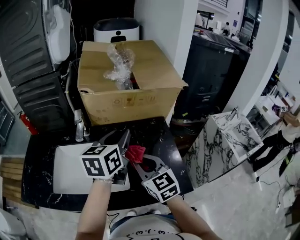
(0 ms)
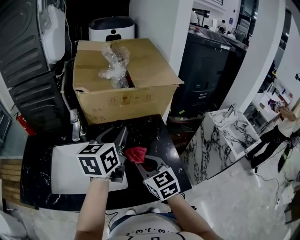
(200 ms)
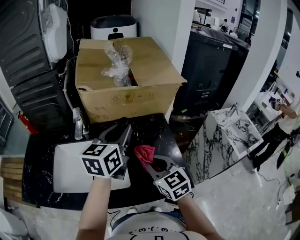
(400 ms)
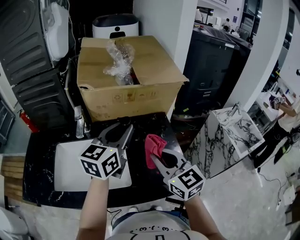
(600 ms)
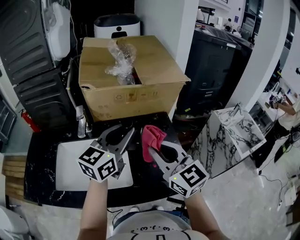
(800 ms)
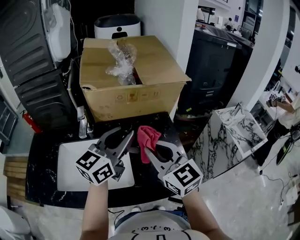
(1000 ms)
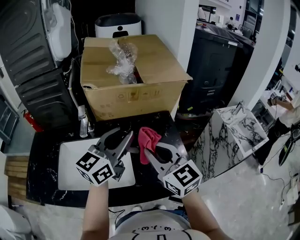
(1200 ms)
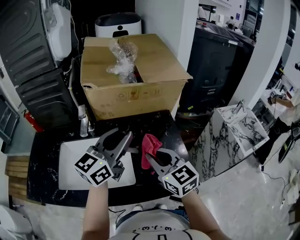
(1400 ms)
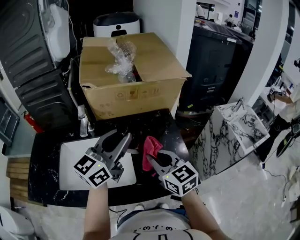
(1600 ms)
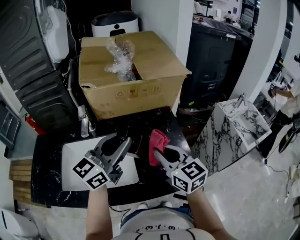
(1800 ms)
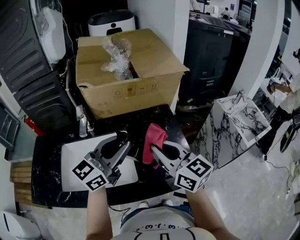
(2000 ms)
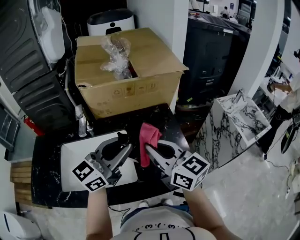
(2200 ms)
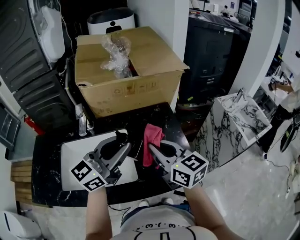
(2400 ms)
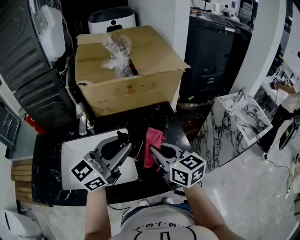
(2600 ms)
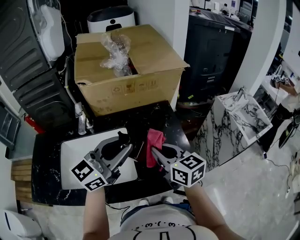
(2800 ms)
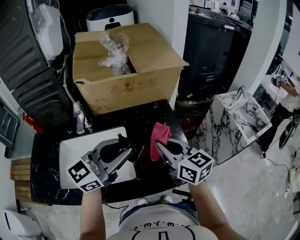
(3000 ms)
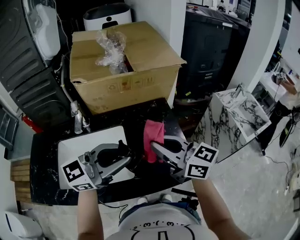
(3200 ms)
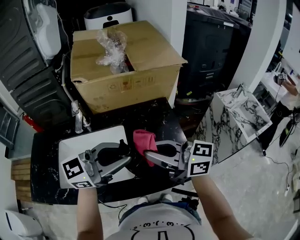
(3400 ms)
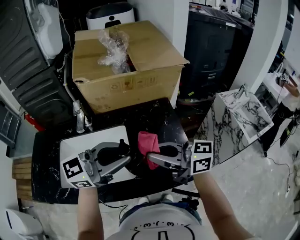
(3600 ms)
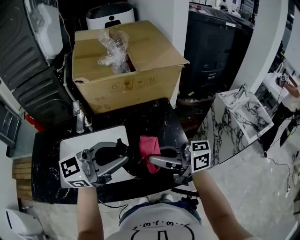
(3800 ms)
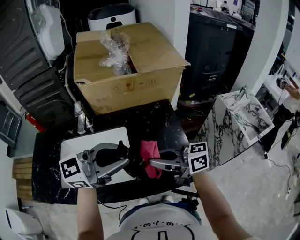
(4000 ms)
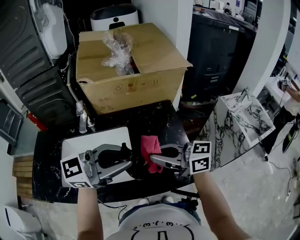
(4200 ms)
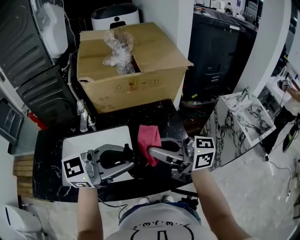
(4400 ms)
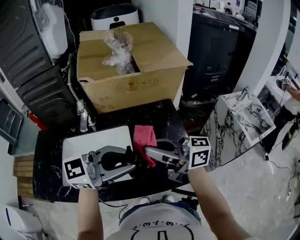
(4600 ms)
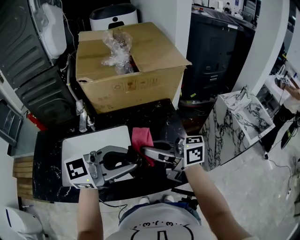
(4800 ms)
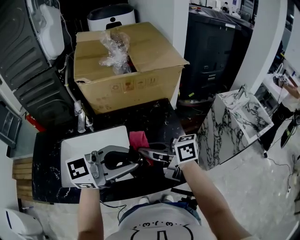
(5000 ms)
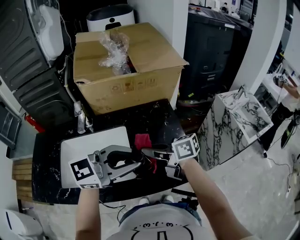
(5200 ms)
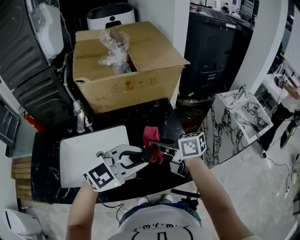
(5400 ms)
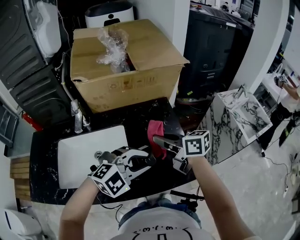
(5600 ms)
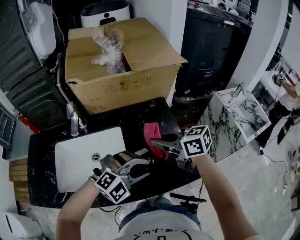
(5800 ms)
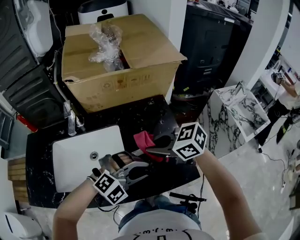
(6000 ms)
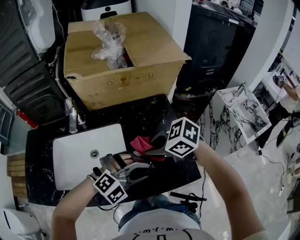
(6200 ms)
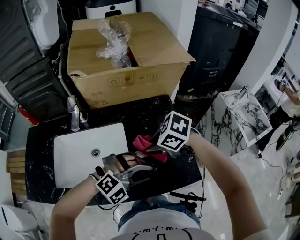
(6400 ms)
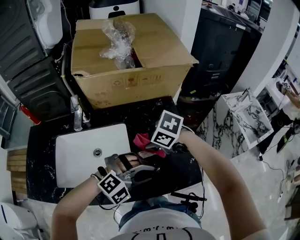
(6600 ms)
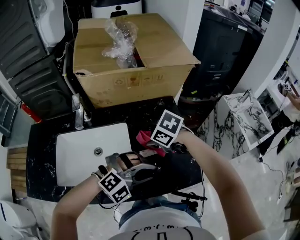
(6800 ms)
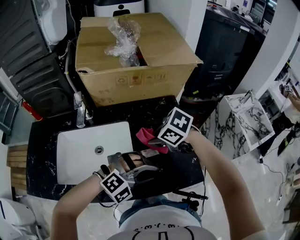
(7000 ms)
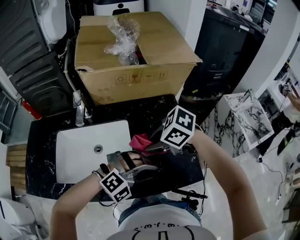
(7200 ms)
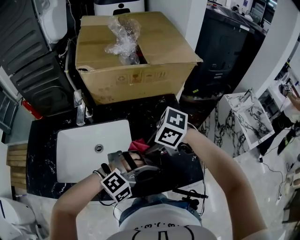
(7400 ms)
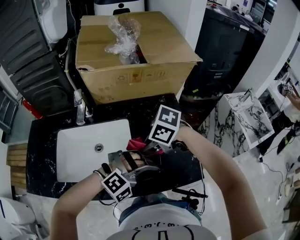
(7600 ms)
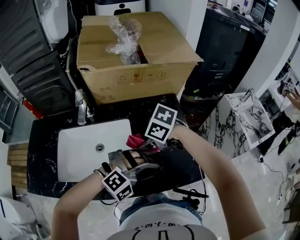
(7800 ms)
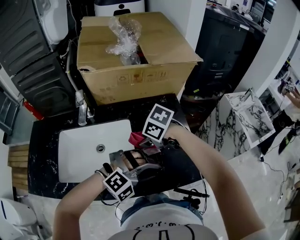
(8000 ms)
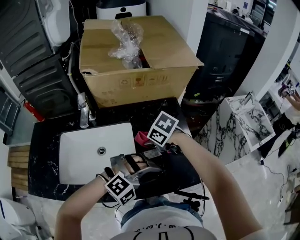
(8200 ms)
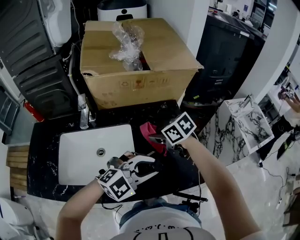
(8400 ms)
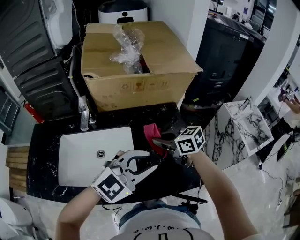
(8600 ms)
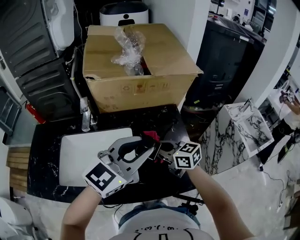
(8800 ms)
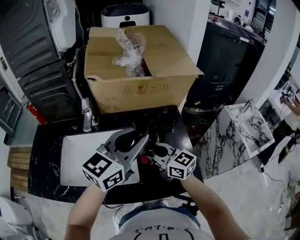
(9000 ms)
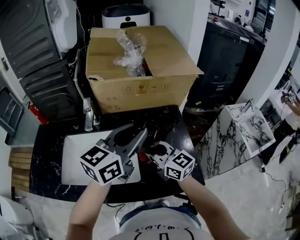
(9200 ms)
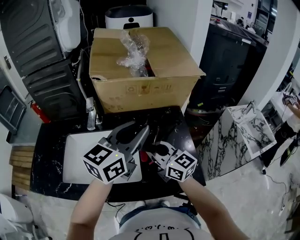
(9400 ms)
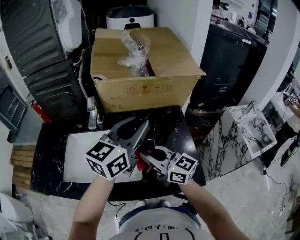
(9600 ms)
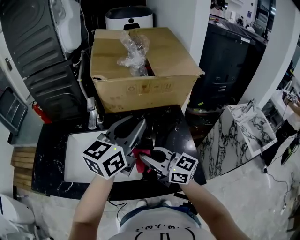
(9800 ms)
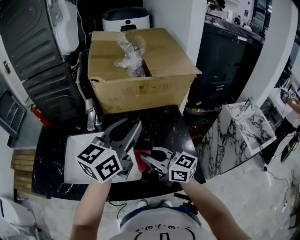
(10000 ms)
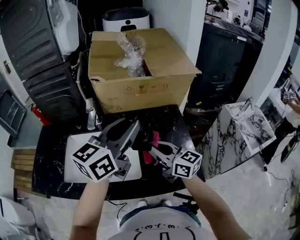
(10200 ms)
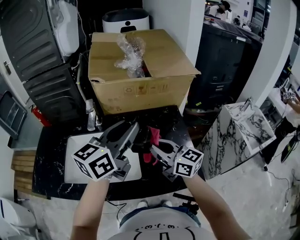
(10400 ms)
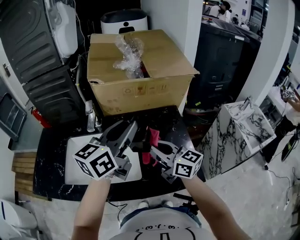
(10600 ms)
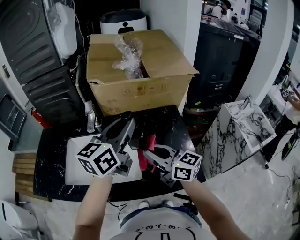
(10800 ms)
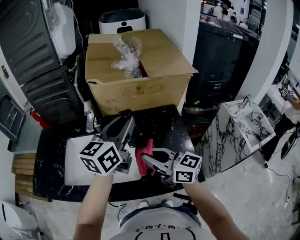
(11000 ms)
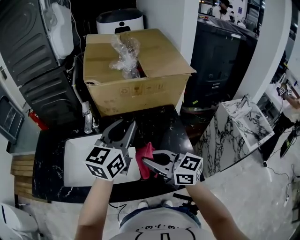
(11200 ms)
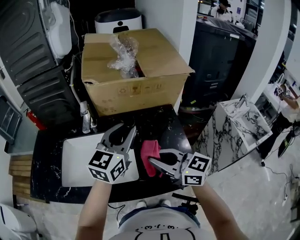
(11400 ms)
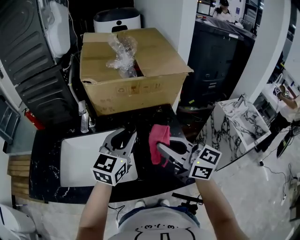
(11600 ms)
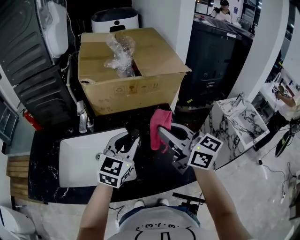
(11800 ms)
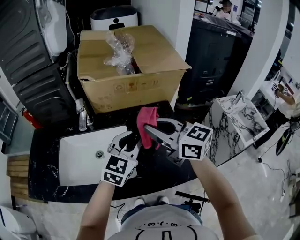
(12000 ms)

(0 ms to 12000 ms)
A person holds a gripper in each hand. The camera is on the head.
0 ms - 1600 ms: The left gripper shifts by roughly 5 cm, and rotates approximately 30 degrees. Meanwhile the right gripper moves roughly 10 cm upward and comes back.
1600 ms - 3000 ms: The left gripper changes place by roughly 5 cm.
3000 ms - 4400 ms: The right gripper moves up and down over approximately 5 cm, changing direction 2 times, and swivels about 50 degrees.
4400 ms - 6000 ms: Both grippers move downward, approximately 15 cm. The left gripper twists roughly 50 degrees clockwise, seen from behind, while the right gripper tips its fingers downward by about 40 degrees.
6000 ms - 7600 ms: The right gripper shifts by some 10 cm, and turns by about 30 degrees.
7600 ms - 9000 ms: The left gripper heads upward, covering roughly 20 cm, and rotates around the line of its fingers by some 70 degrees, counterclockwise from behind. The right gripper tilts its fingers approximately 50 degrees upward.
9000 ms - 10400 ms: The right gripper ends up some 5 cm from where it was.
10400 ms - 12000 ms: The left gripper is displaced downward by some 10 cm, and turns by approximately 30 degrees. Meanwhile the right gripper travels upward by roughly 10 cm.

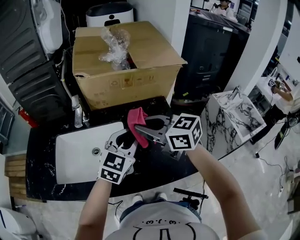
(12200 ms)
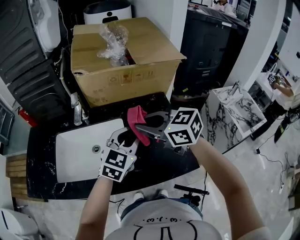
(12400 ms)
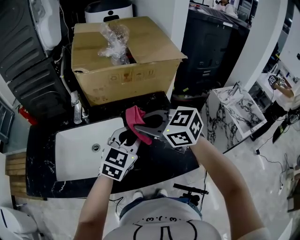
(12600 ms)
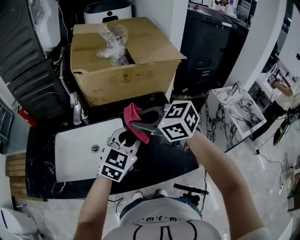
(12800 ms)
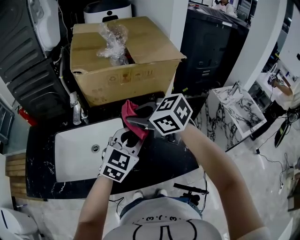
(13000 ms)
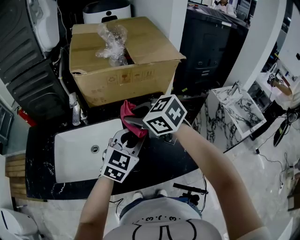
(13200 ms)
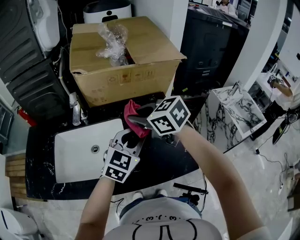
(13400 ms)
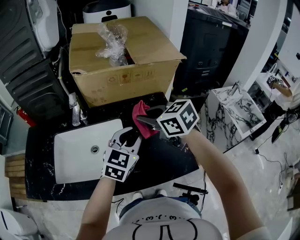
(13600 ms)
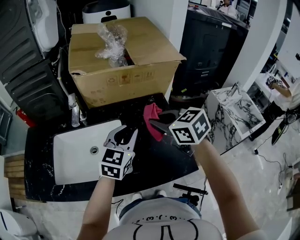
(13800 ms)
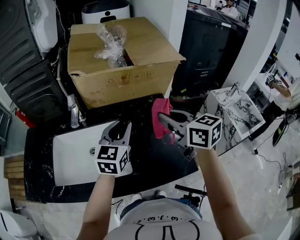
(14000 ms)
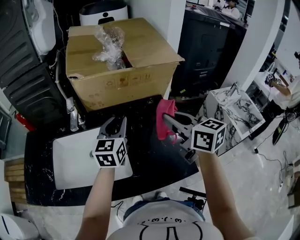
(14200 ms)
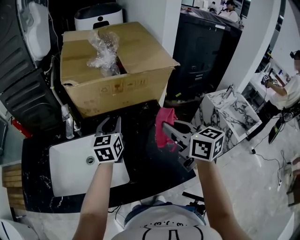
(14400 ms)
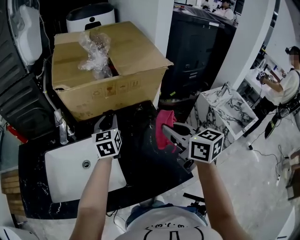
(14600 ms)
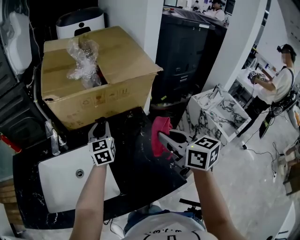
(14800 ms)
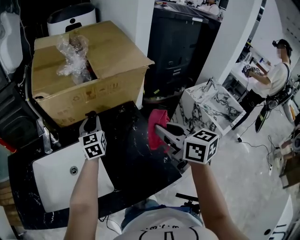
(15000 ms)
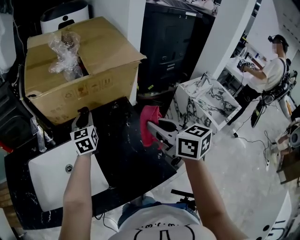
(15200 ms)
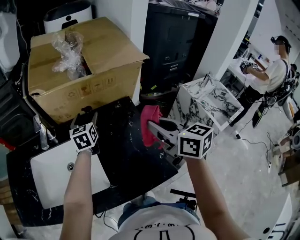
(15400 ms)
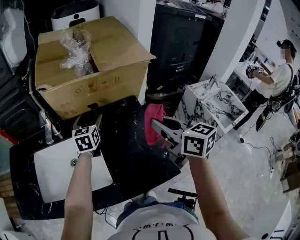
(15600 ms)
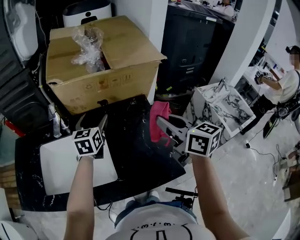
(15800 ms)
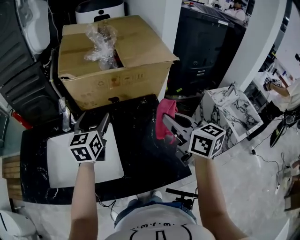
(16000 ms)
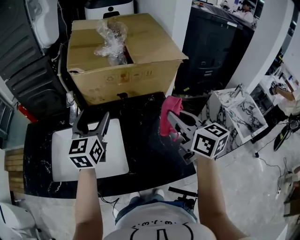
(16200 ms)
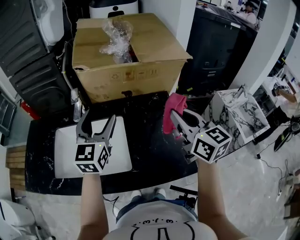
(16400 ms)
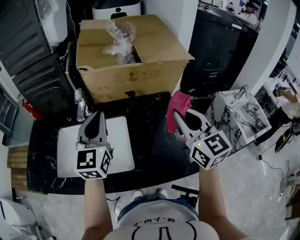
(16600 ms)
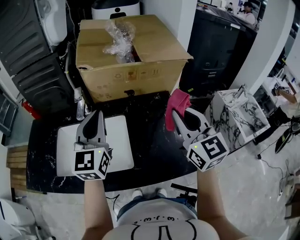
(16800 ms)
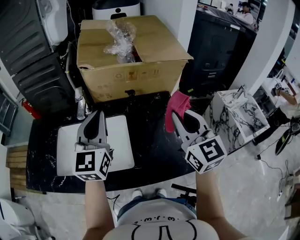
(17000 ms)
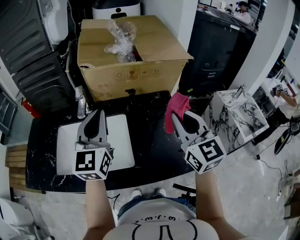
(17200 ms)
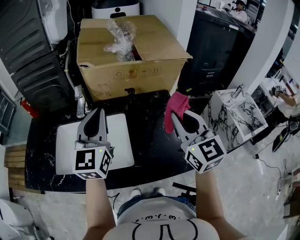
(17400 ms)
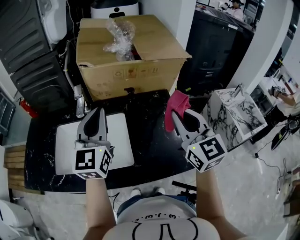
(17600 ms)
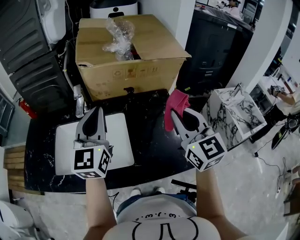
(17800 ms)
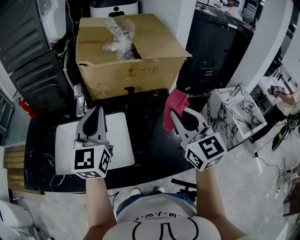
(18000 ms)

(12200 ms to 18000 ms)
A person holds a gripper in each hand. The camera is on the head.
12200 ms - 13600 ms: The right gripper shifts by some 5 cm.
13600 ms - 15000 ms: The left gripper travels forward by some 20 cm, and turns by approximately 30 degrees, while the right gripper shifts roughly 15 cm to the right, and rotates about 40 degrees.
15000 ms - 16600 ms: The right gripper travels to the left by about 5 cm, and turns by some 30 degrees. The left gripper moves backward, upward and to the left, about 25 cm, and opens, then closes again.
16600 ms - 18000 ms: The grippers stay close to where they were, moving slightly.

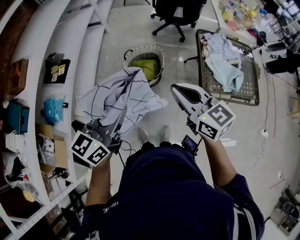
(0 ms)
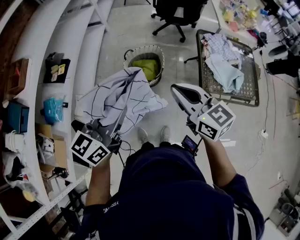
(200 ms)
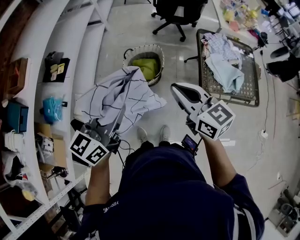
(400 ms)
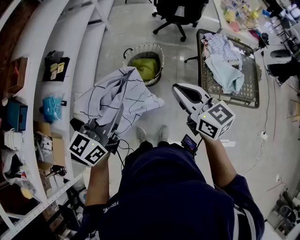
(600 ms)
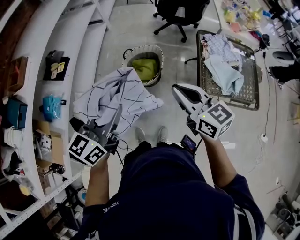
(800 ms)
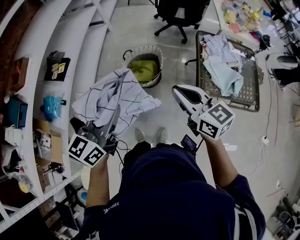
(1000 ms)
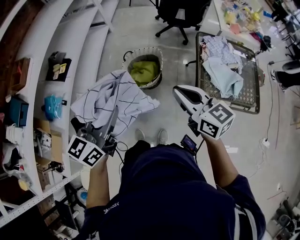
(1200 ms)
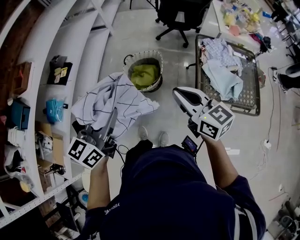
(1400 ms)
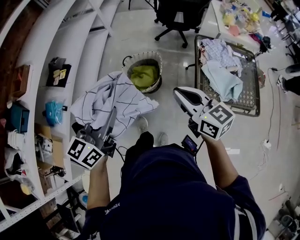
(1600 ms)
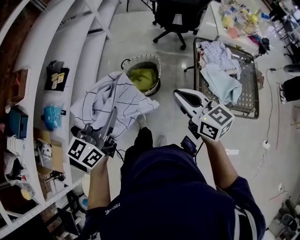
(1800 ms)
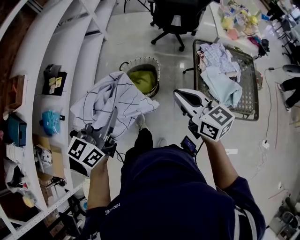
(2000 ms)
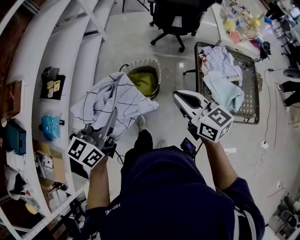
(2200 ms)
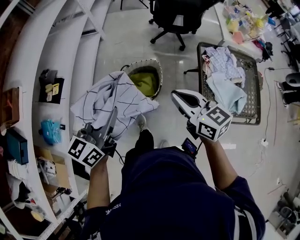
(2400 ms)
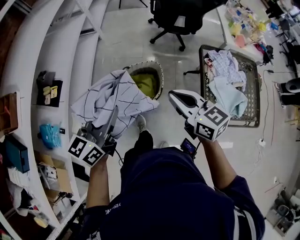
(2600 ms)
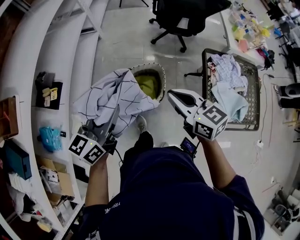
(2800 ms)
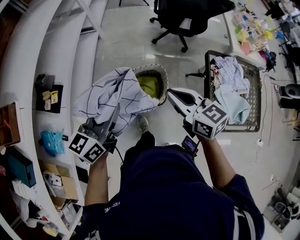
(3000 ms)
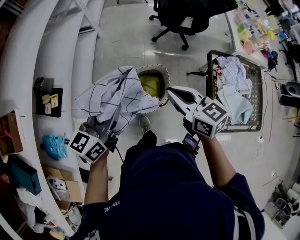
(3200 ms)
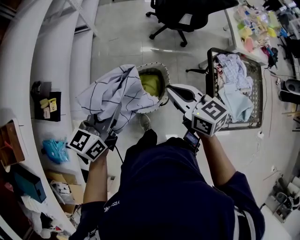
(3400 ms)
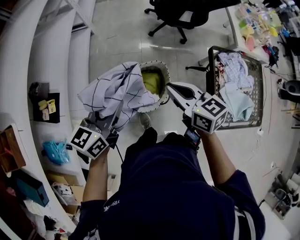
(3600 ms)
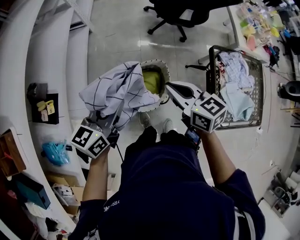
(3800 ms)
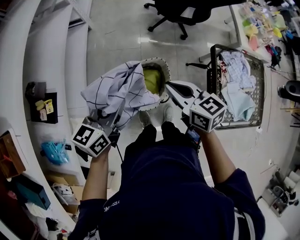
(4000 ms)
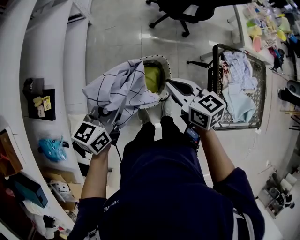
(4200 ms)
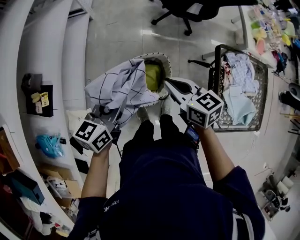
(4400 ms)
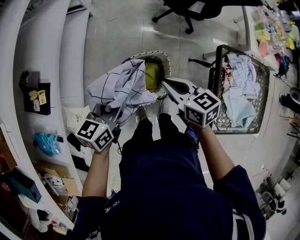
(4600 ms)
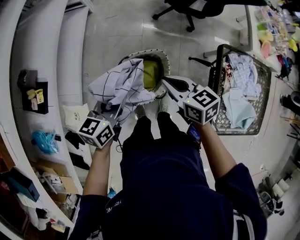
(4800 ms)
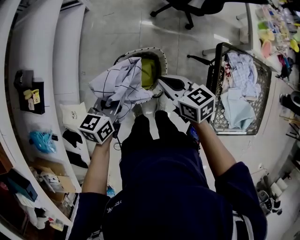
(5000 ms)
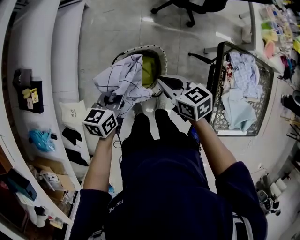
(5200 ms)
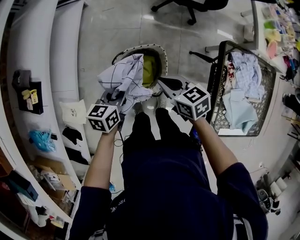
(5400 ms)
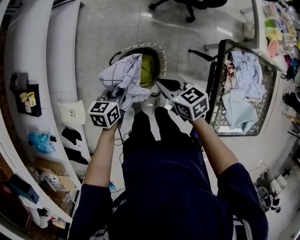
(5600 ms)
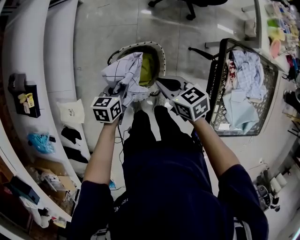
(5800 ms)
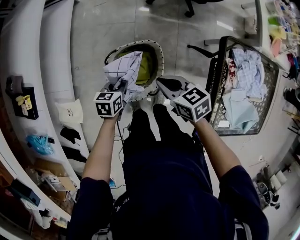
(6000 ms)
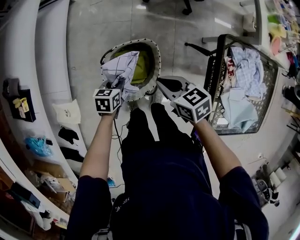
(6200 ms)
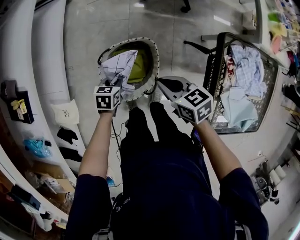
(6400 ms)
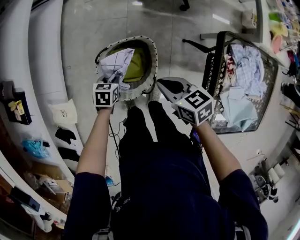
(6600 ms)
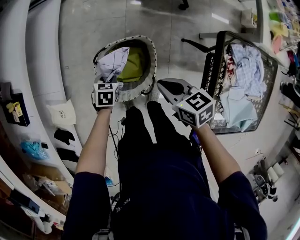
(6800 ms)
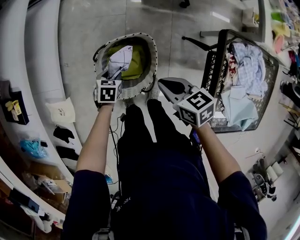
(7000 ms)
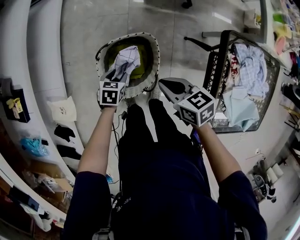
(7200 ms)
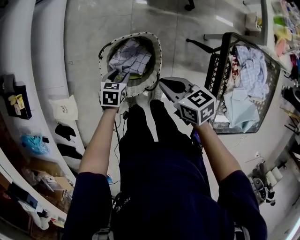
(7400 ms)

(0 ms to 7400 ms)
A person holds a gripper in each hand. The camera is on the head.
0 ms - 1400 ms: The right gripper shifts roughly 10 cm to the right.
1400 ms - 3000 ms: The left gripper shifts approximately 30 cm forward. Meanwhile the right gripper shifts some 30 cm forward and to the left.
3000 ms - 4400 ms: The grippers both shift downward and forward by about 15 cm.
4400 ms - 6000 ms: The right gripper shifts about 15 cm downward and to the right. The left gripper shifts roughly 30 cm downward, and rotates approximately 30 degrees.
6000 ms - 7400 ms: The left gripper travels downward by approximately 5 cm, and opens up.
